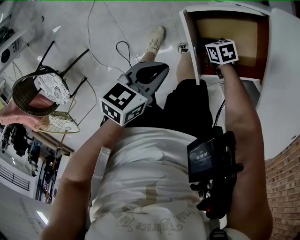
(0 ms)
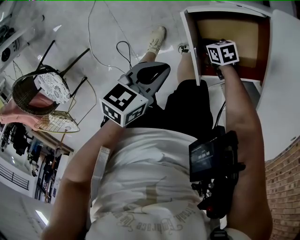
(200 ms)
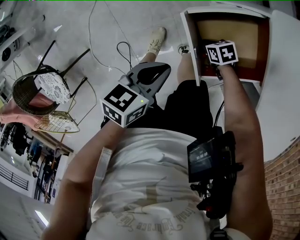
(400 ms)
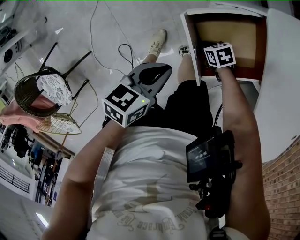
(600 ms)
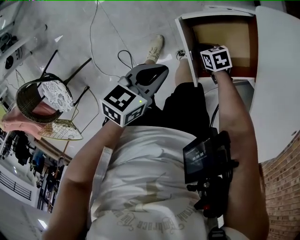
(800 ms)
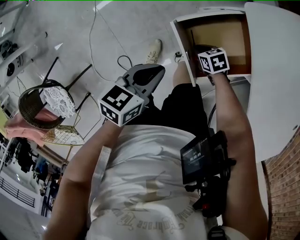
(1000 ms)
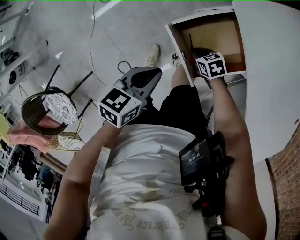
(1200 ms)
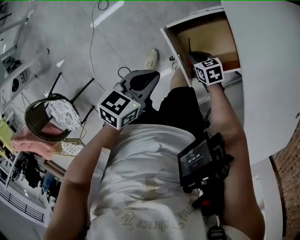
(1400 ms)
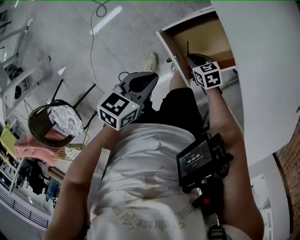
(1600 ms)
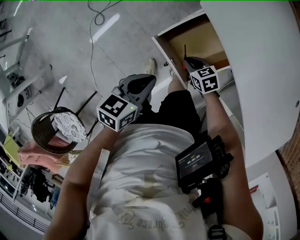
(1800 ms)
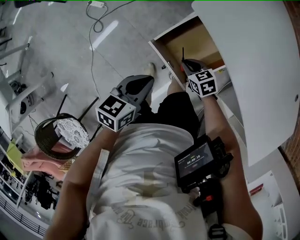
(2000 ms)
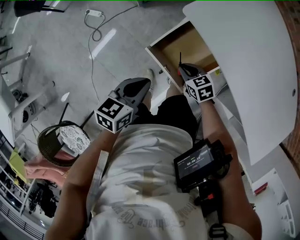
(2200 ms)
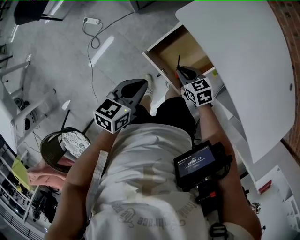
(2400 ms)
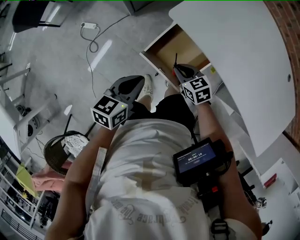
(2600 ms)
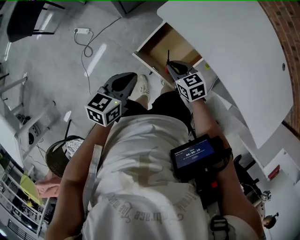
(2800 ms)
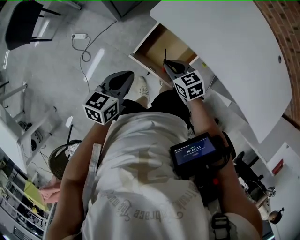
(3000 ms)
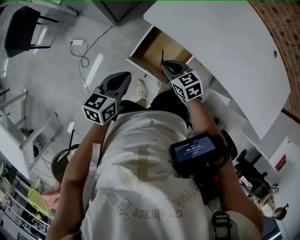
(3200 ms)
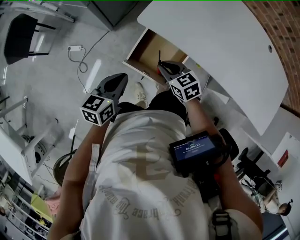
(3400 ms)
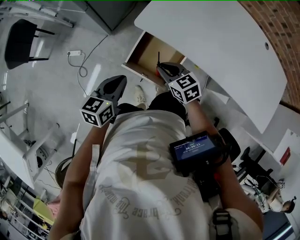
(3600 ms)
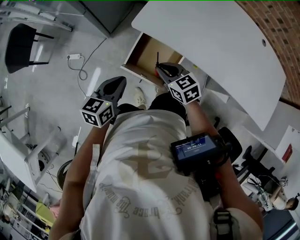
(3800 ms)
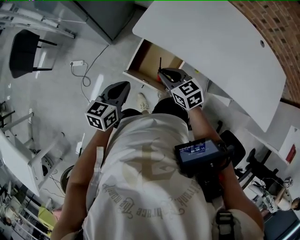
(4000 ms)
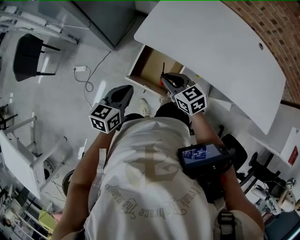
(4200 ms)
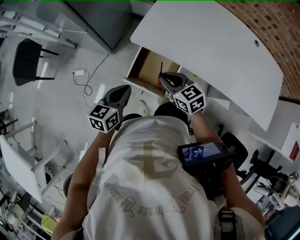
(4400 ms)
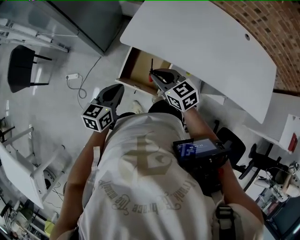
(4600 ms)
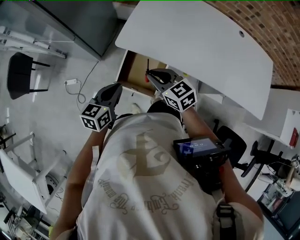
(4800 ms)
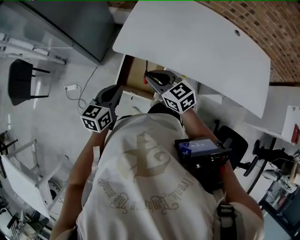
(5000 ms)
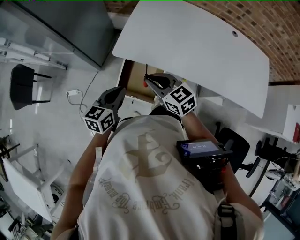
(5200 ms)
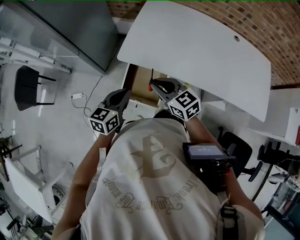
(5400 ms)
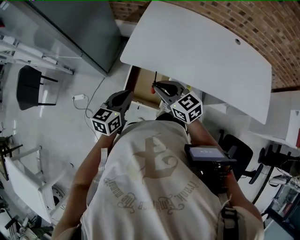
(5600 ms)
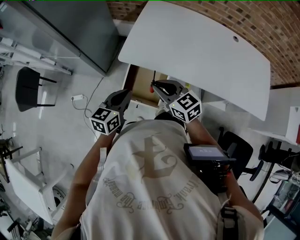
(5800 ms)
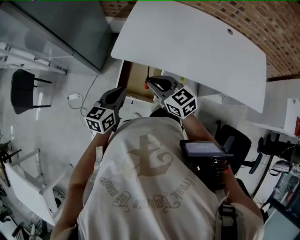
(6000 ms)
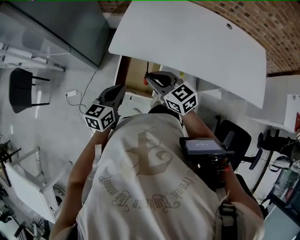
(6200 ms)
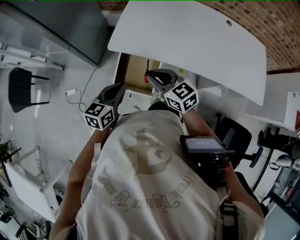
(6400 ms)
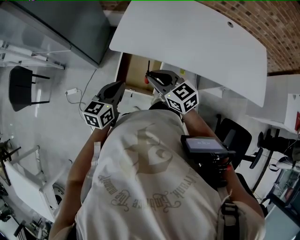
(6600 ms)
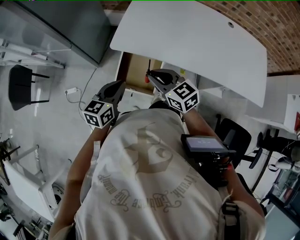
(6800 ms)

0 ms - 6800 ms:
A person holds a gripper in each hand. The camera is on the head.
0 ms - 1400 ms: The two grippers go roughly 10 cm upward.
1400 ms - 2800 ms: The left gripper is displaced upward by some 10 cm, while the right gripper moves upward, some 20 cm, and rotates approximately 30 degrees.
2800 ms - 4000 ms: The left gripper shifts by some 5 cm, while the right gripper shifts some 10 cm upward.
4000 ms - 5400 ms: The right gripper goes some 10 cm upward; the left gripper travels to the right and upward by about 10 cm.
5400 ms - 6800 ms: The grippers stay close to where they were, moving slightly.

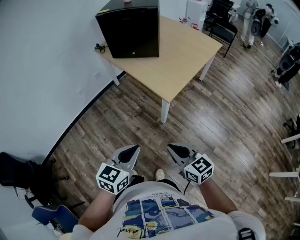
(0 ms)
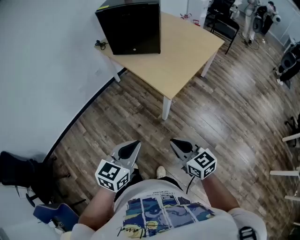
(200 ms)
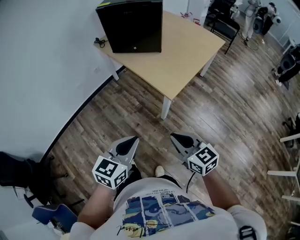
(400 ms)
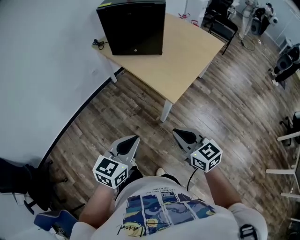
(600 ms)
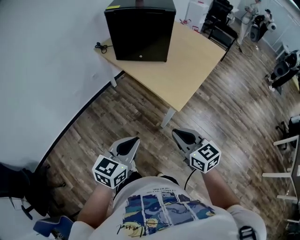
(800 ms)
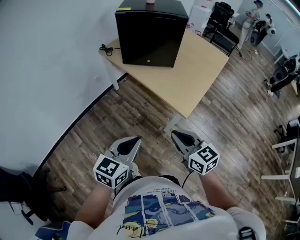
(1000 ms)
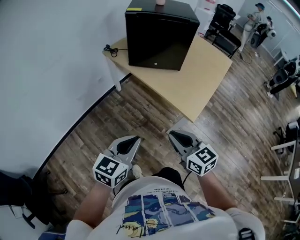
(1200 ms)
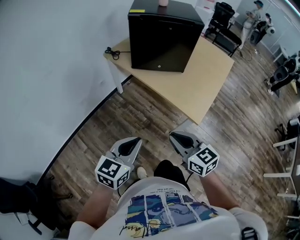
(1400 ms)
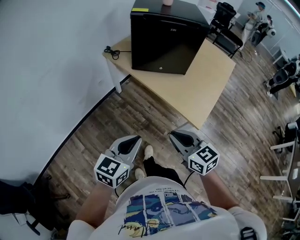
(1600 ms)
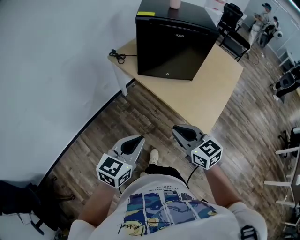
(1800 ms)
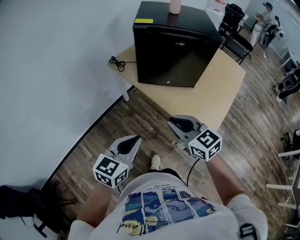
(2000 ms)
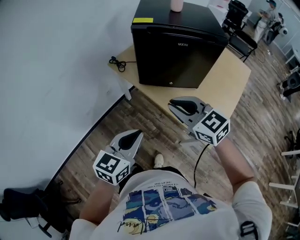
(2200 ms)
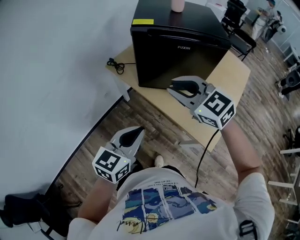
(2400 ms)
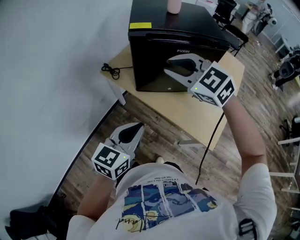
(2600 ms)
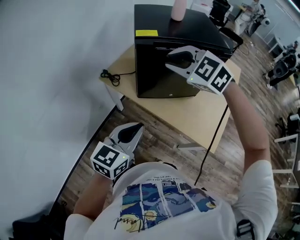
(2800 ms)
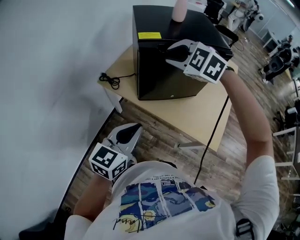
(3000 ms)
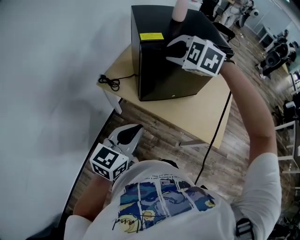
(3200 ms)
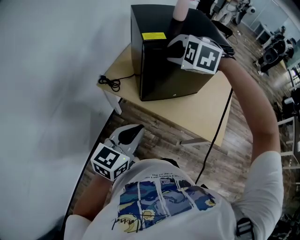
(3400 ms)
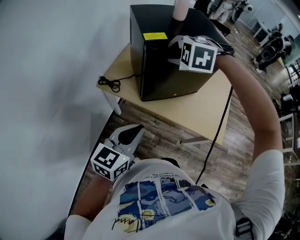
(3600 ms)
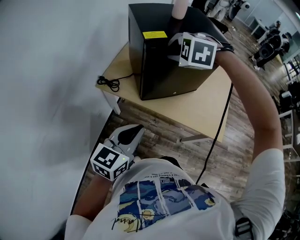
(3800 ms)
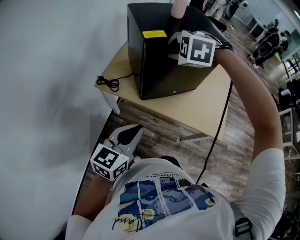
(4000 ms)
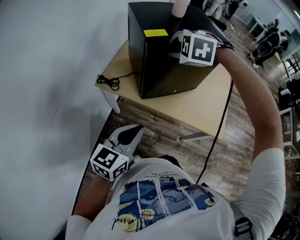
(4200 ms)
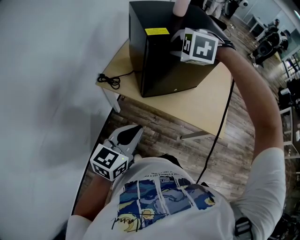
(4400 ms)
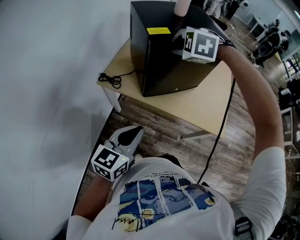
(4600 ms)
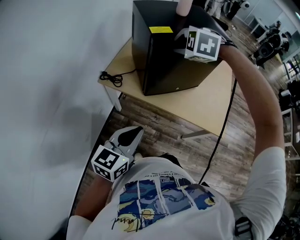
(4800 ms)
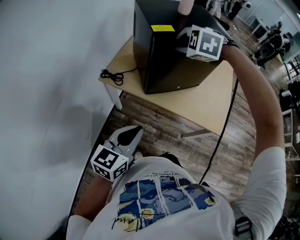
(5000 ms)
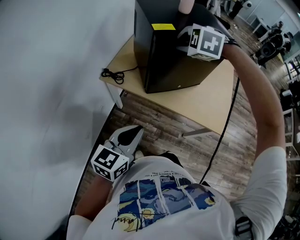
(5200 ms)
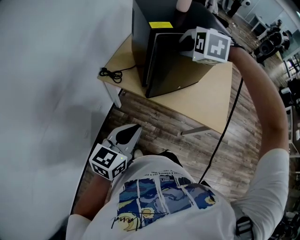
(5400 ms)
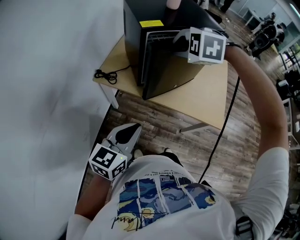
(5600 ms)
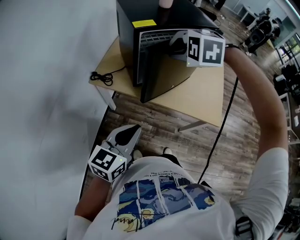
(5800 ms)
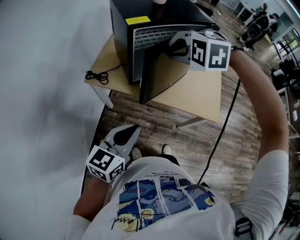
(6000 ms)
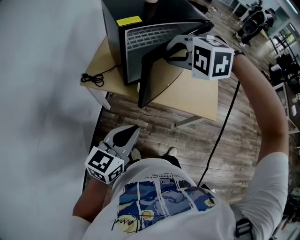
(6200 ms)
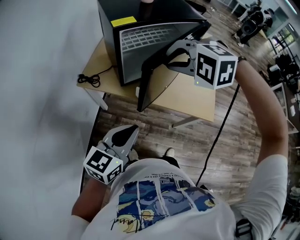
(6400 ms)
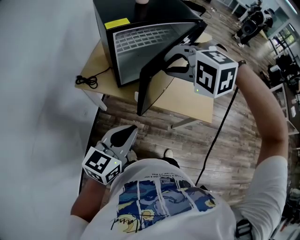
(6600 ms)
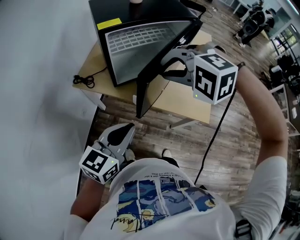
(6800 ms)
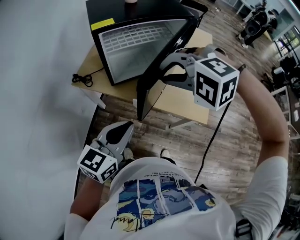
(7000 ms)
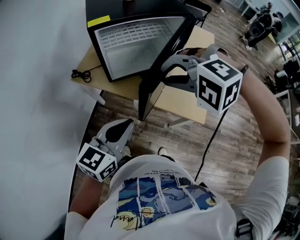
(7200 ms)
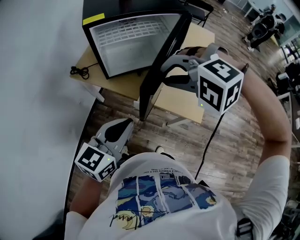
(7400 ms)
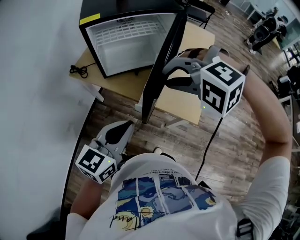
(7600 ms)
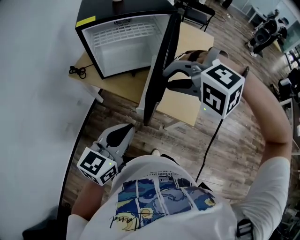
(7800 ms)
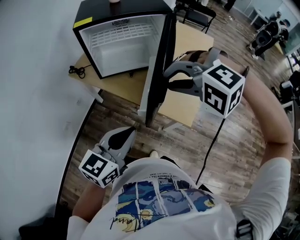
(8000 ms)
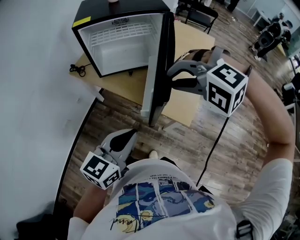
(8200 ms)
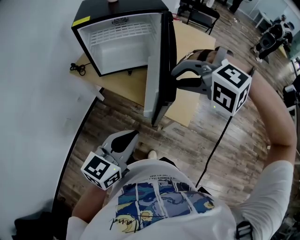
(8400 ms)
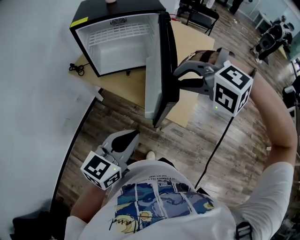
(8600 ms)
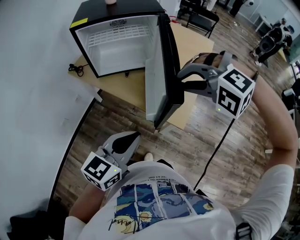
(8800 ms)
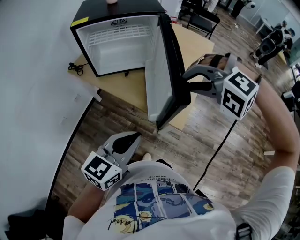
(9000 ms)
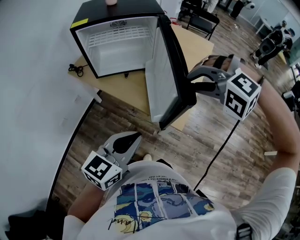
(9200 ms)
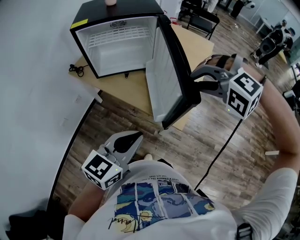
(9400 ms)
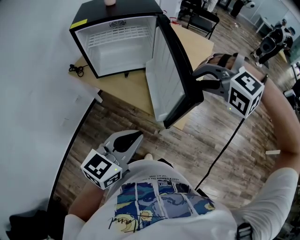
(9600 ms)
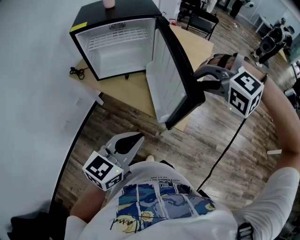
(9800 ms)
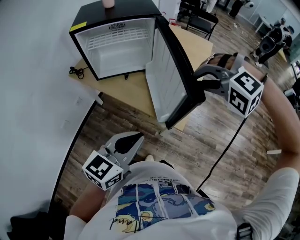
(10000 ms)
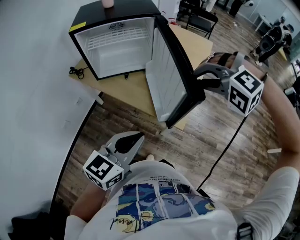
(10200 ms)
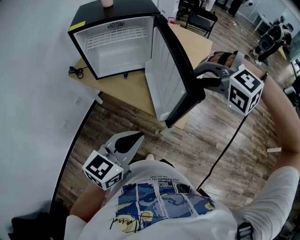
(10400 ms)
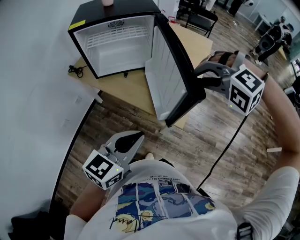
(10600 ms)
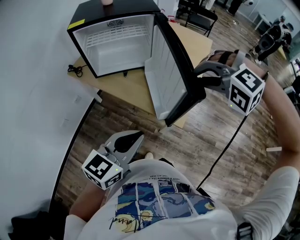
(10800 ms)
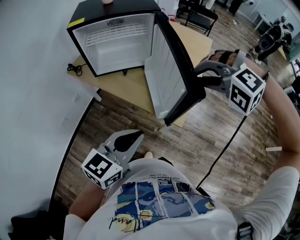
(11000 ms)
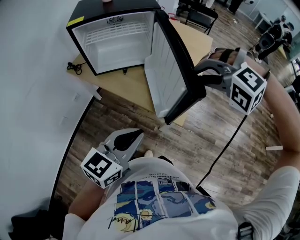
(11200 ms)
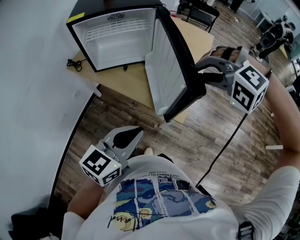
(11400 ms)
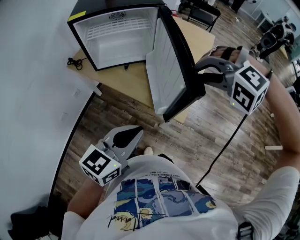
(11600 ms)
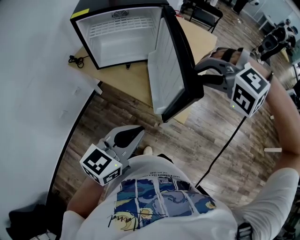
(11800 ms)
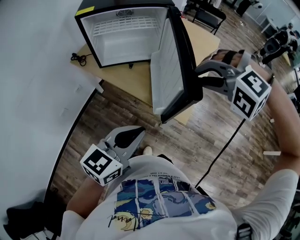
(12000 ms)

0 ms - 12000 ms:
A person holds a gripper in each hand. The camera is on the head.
0 ms - 1600 ms: The two grippers go approximately 35 cm forward and to the left.
1600 ms - 3000 ms: The right gripper travels forward by roughly 50 cm, and twists about 50 degrees counterclockwise, seen from behind. The left gripper shifts about 30 cm forward.
3000 ms - 4400 ms: The left gripper shifts roughly 5 cm to the left. The right gripper rotates some 20 degrees.
4400 ms - 6000 ms: The right gripper shifts some 10 cm backward.
6000 ms - 7600 ms: The left gripper goes some 20 cm to the right; the right gripper shifts about 25 cm to the right and backward, and rotates some 30 degrees.
7600 ms - 9000 ms: The left gripper moves to the right and backward, some 15 cm, while the right gripper is displaced to the right by about 15 cm.
9000 ms - 12000 ms: There are only small adjustments of the grippers.

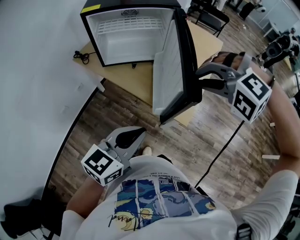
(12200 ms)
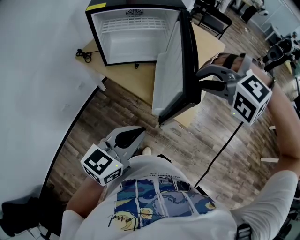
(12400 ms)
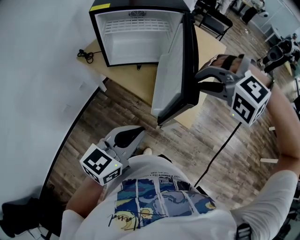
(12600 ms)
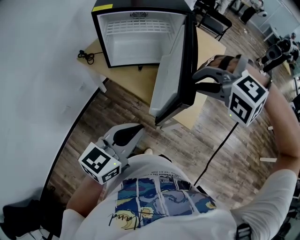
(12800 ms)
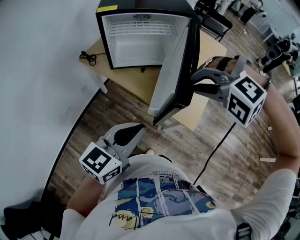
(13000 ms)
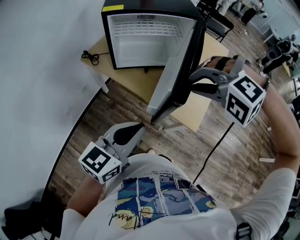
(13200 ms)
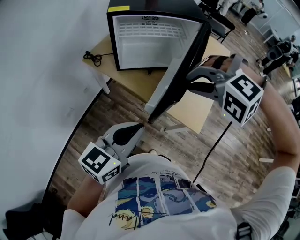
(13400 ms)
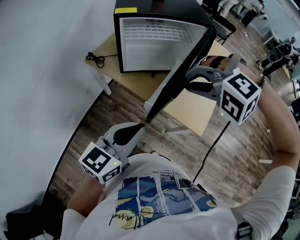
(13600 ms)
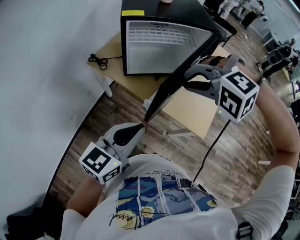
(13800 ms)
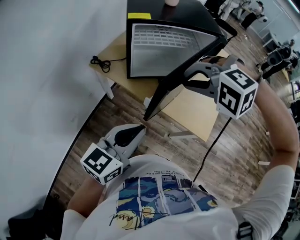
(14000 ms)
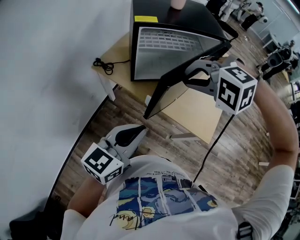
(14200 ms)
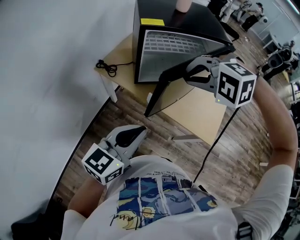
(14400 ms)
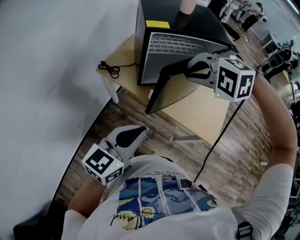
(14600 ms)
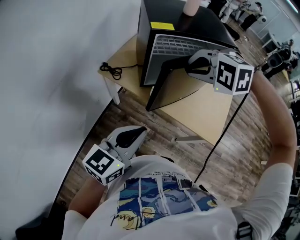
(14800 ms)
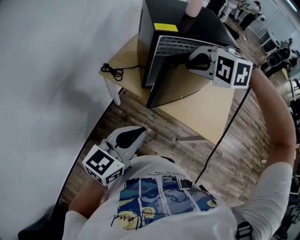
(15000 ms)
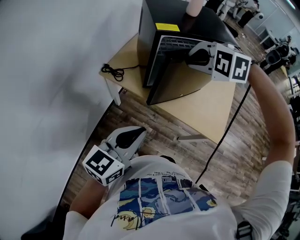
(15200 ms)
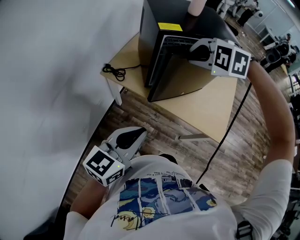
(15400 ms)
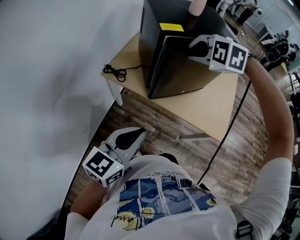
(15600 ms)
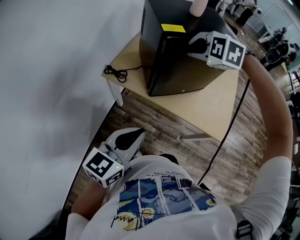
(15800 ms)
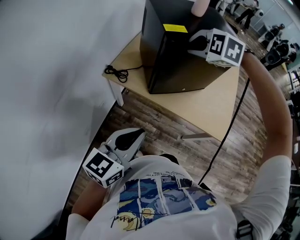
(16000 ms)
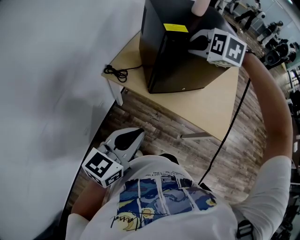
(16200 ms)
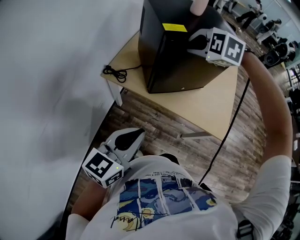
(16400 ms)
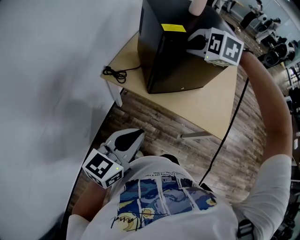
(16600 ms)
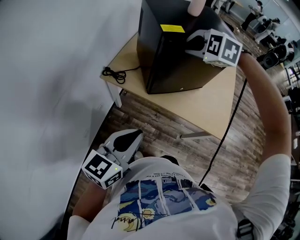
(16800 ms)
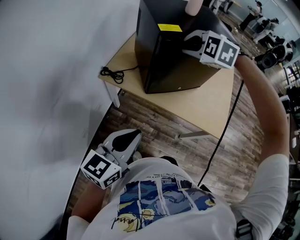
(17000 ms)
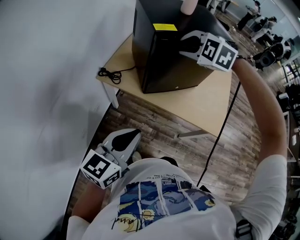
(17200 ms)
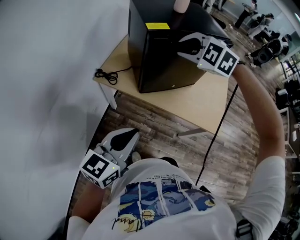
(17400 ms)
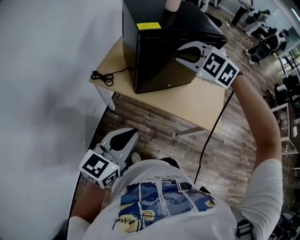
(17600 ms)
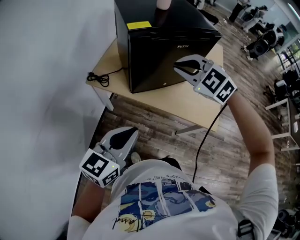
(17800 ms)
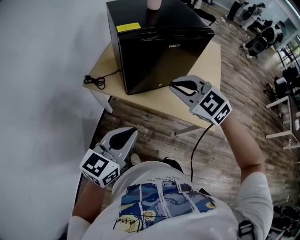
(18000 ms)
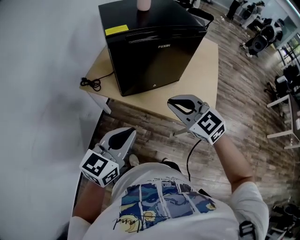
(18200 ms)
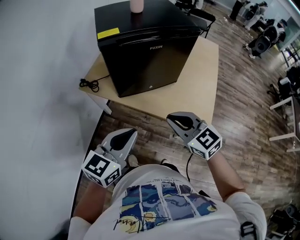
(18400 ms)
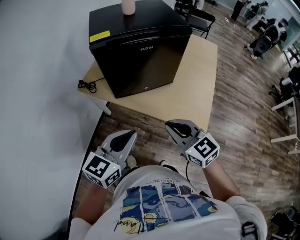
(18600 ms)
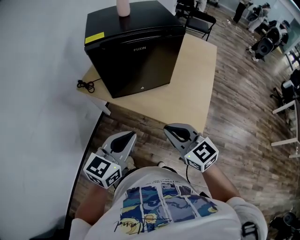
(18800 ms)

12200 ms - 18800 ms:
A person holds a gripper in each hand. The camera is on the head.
12200 ms - 13800 ms: The right gripper shifts about 20 cm to the left; the left gripper heads to the left and forward, covering some 20 cm.
13800 ms - 15400 ms: The left gripper goes some 15 cm to the left, while the right gripper moves forward and to the left, approximately 20 cm, and swivels some 30 degrees.
15400 ms - 17200 ms: The grippers make only small movements.
17200 ms - 18800 ms: The right gripper goes approximately 35 cm backward and to the right, and rotates around the line of its fingers by roughly 50 degrees, clockwise from behind; the left gripper moves to the right, some 20 cm.
